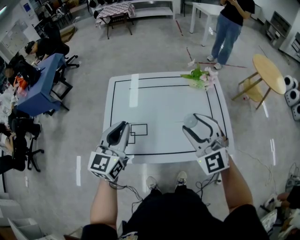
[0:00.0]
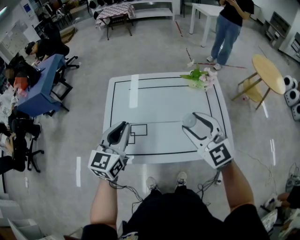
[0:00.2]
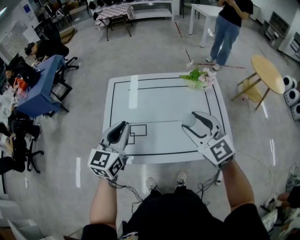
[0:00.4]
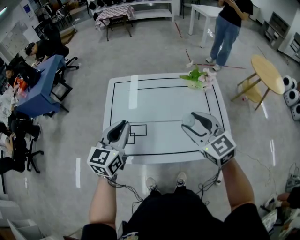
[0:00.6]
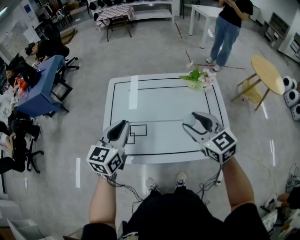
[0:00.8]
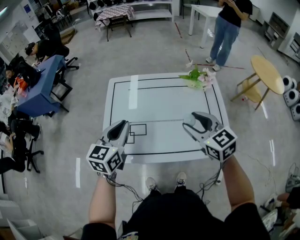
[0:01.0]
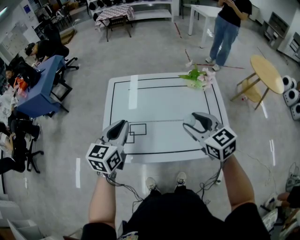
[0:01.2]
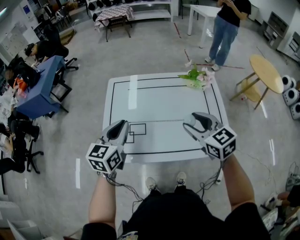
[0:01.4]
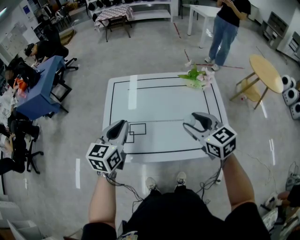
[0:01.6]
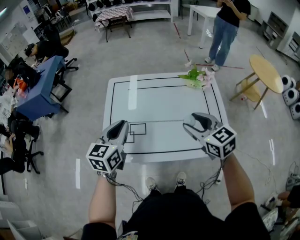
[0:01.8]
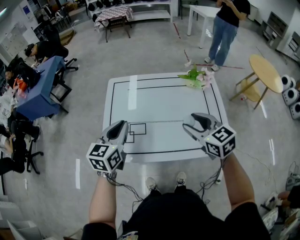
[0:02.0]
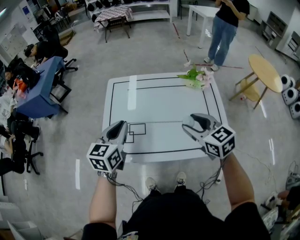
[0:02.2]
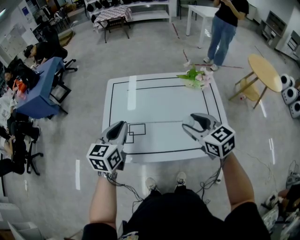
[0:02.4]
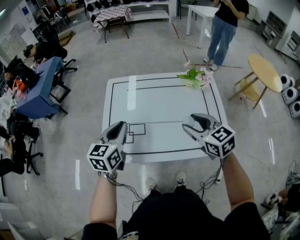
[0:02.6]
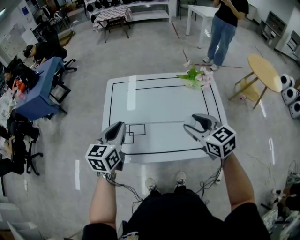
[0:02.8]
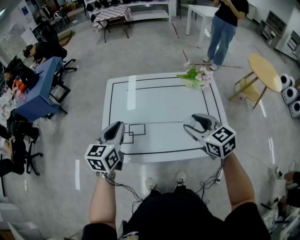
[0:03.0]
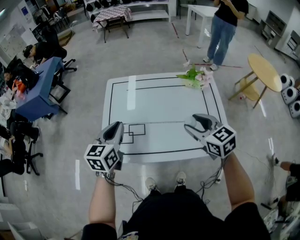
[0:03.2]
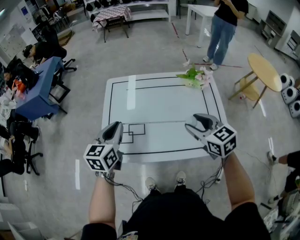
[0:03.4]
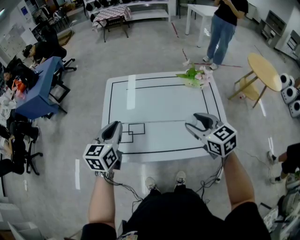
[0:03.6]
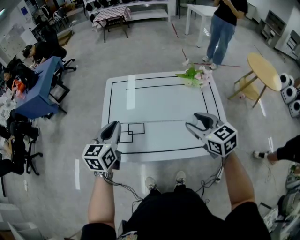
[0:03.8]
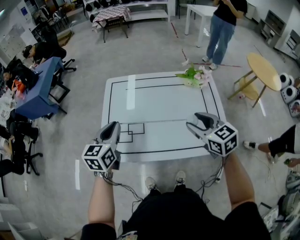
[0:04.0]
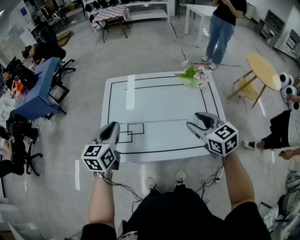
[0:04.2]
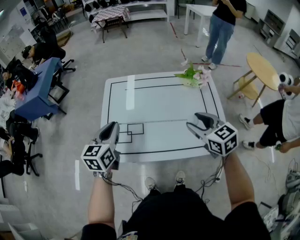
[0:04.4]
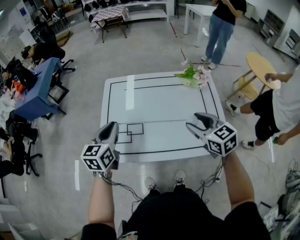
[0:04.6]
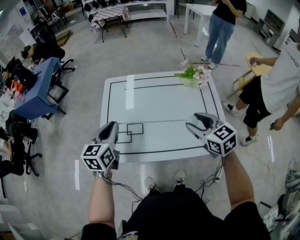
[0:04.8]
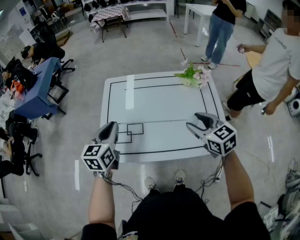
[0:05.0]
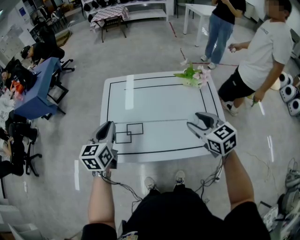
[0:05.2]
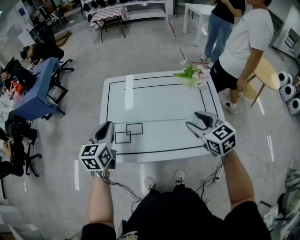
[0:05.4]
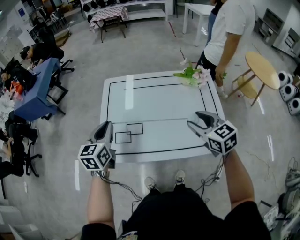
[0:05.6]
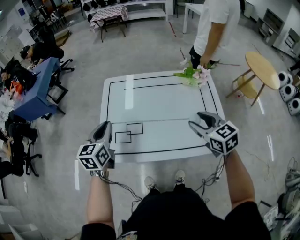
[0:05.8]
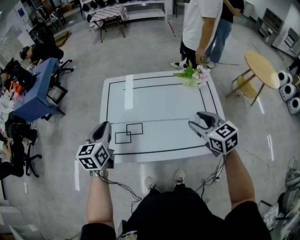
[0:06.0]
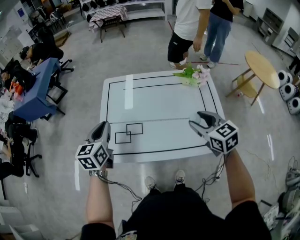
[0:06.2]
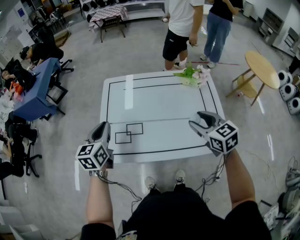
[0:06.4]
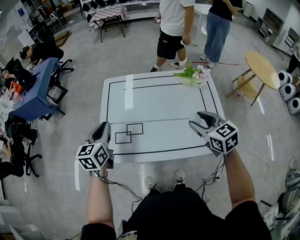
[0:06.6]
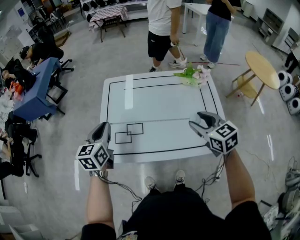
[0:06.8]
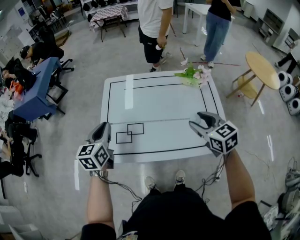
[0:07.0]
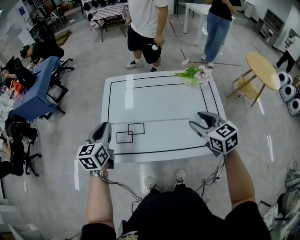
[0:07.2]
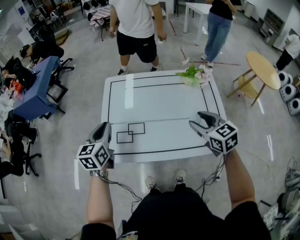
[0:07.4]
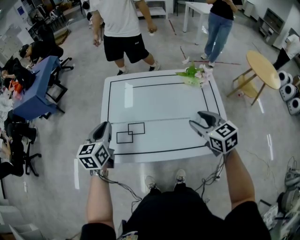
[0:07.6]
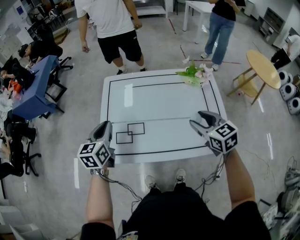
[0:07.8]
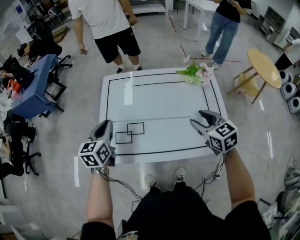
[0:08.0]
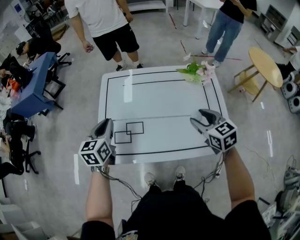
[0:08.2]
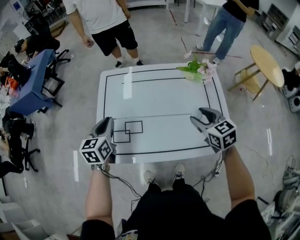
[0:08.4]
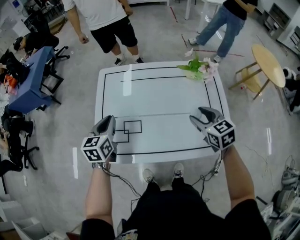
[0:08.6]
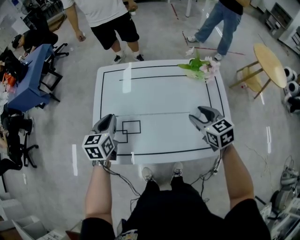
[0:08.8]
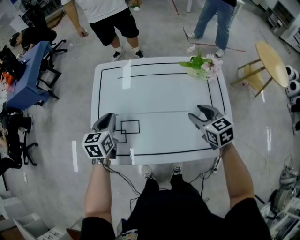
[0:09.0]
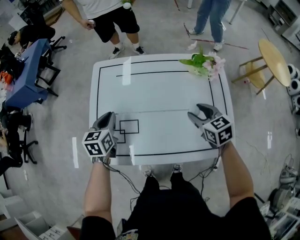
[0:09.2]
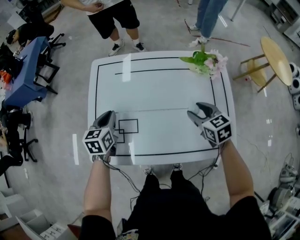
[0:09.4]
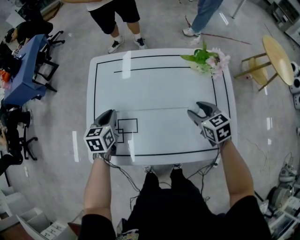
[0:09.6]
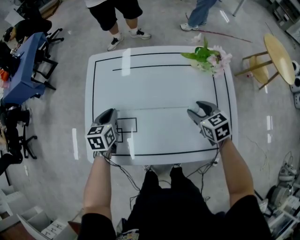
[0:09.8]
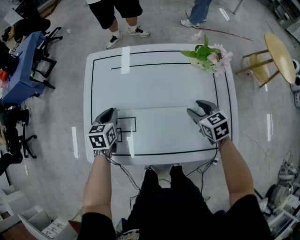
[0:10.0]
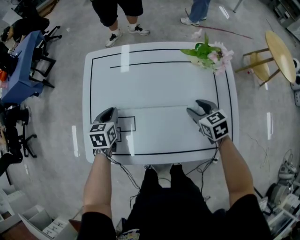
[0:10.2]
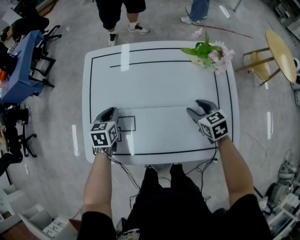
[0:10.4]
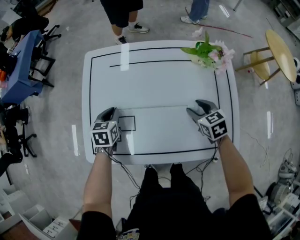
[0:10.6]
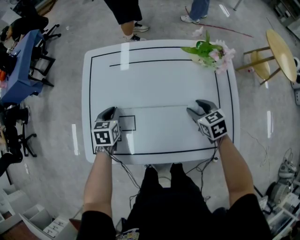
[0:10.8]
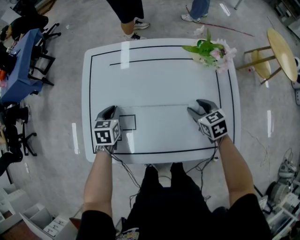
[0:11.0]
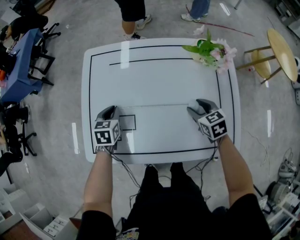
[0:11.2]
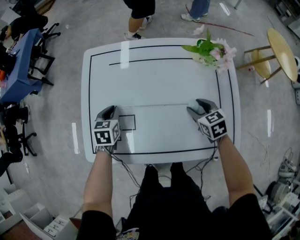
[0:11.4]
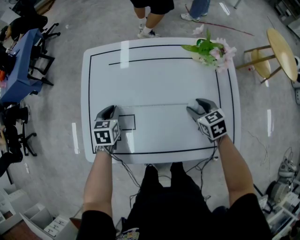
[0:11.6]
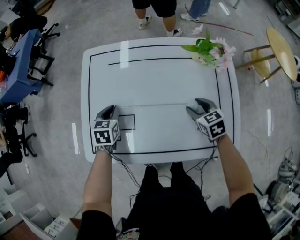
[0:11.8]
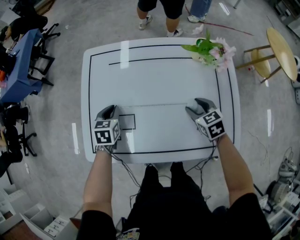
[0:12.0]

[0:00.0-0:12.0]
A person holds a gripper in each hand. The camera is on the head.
0:00.0 to 0:01.6: The right gripper rotates about 40 degrees.
0:01.6 to 0:04.4: There are only small adjustments of the grippers.
0:04.4 to 0:07.6: The grippers move only a little.
0:07.6 to 0:09.0: The left gripper heads downward, forward and to the right, covering roughly 15 cm. The right gripper heads downward and forward, covering about 15 cm.
0:09.0 to 0:10.4: Both grippers move downward, roughly 10 cm.
0:10.4 to 0:12.0: The grippers stay close to where they were, moving slightly.

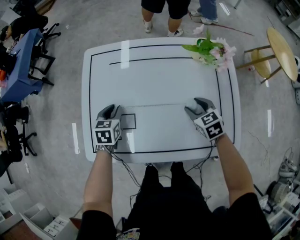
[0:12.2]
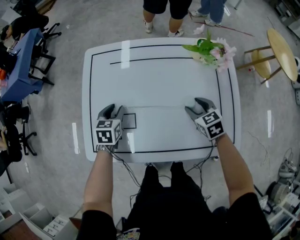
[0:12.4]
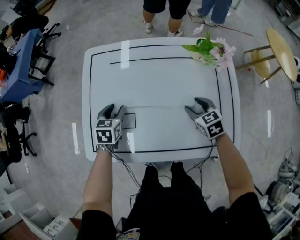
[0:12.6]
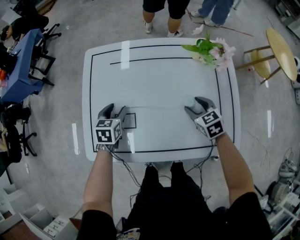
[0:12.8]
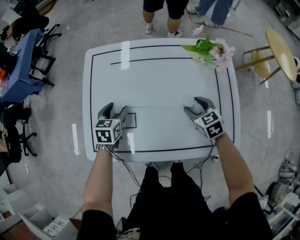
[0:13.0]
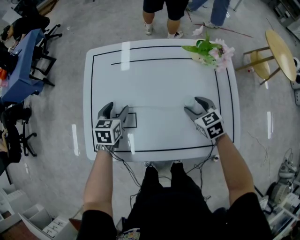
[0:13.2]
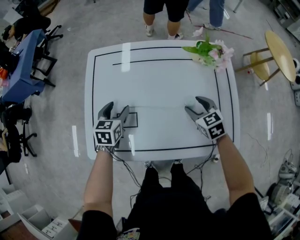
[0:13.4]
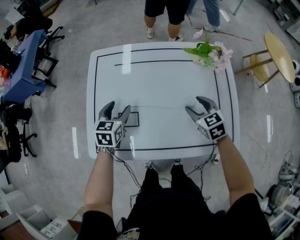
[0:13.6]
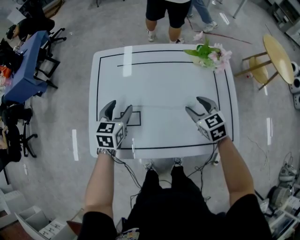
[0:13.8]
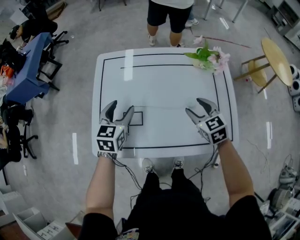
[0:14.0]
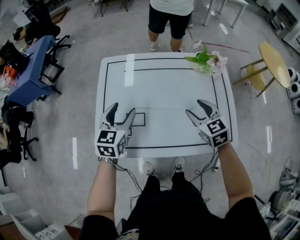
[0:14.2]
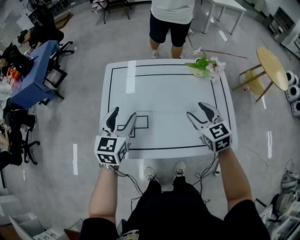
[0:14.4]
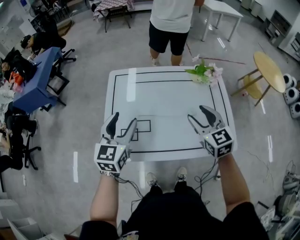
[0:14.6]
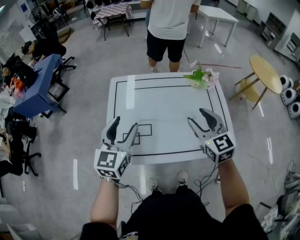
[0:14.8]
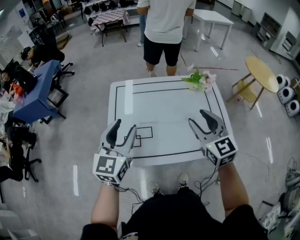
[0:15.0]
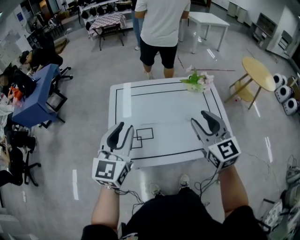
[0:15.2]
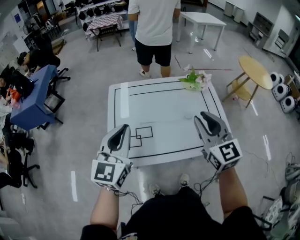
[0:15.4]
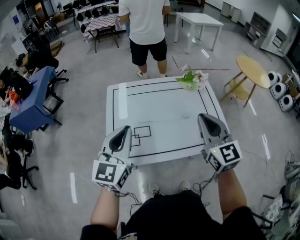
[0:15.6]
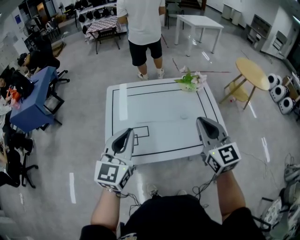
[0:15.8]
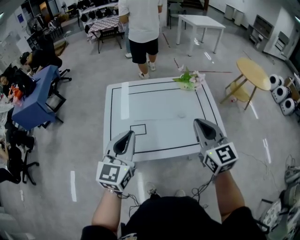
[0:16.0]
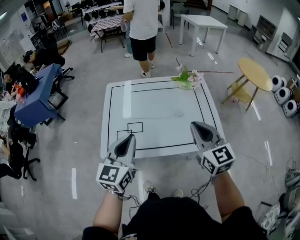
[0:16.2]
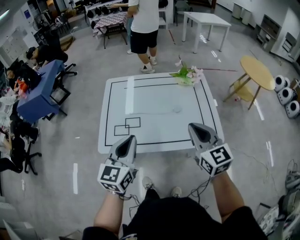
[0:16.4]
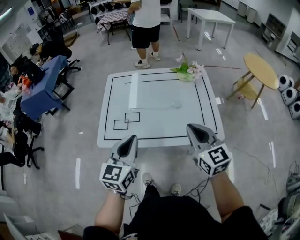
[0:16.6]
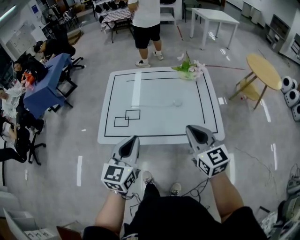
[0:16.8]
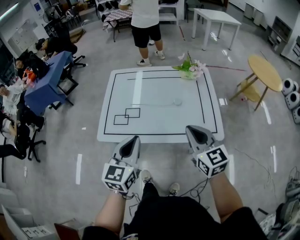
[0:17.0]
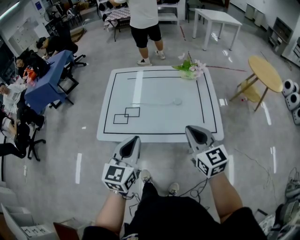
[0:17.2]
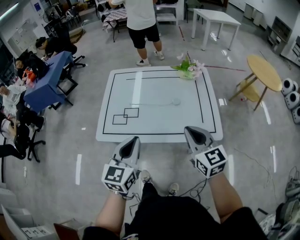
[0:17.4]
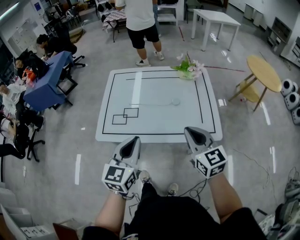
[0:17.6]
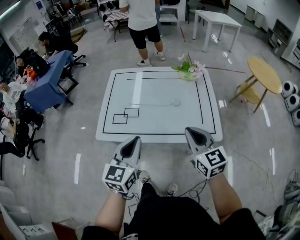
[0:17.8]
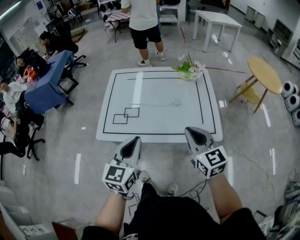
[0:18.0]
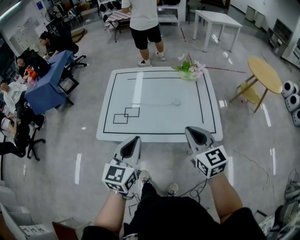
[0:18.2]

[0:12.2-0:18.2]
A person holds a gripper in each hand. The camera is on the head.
0:12.2 to 0:13.8: Both grippers travel together upward, some 10 cm. The left gripper opens up.
0:13.8 to 0:15.2: The two grippers go roughly 30 cm upward and backward. The left gripper angles its fingers upward, by approximately 30 degrees, and closes up. Meanwhile the right gripper angles its fingers upward, by roughly 30 degrees.
0:15.2 to 0:16.6: The left gripper is displaced to the right, backward and downward by about 20 cm, and closes up. The right gripper travels backward and to the right by approximately 15 cm, and closes.
0:16.6 to 0:18.2: The left gripper moves approximately 5 cm.

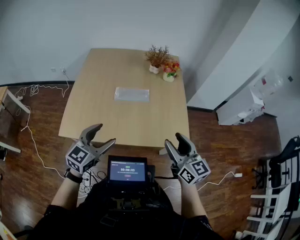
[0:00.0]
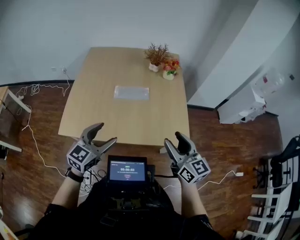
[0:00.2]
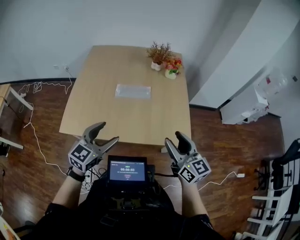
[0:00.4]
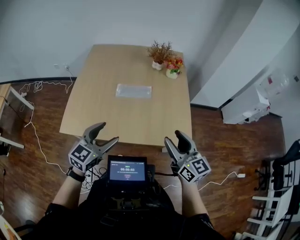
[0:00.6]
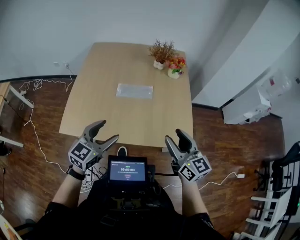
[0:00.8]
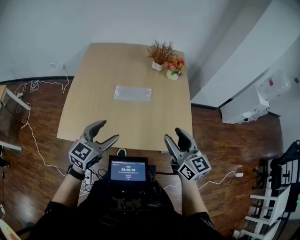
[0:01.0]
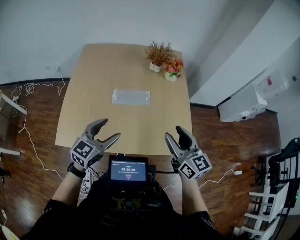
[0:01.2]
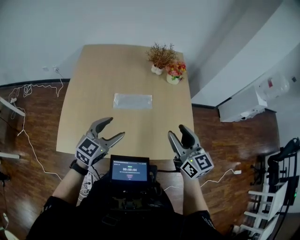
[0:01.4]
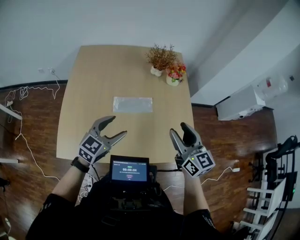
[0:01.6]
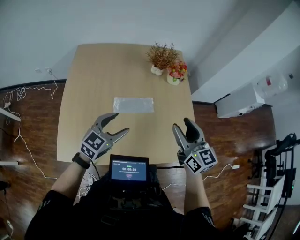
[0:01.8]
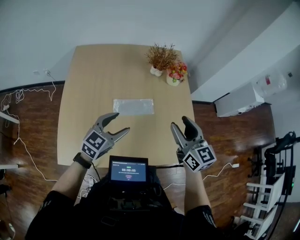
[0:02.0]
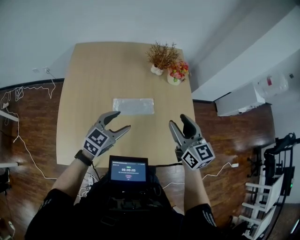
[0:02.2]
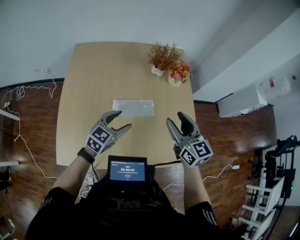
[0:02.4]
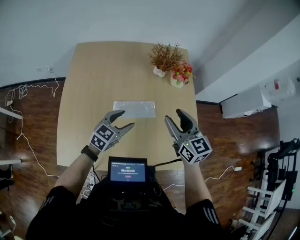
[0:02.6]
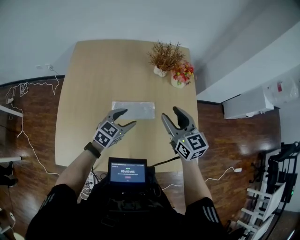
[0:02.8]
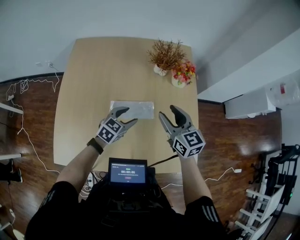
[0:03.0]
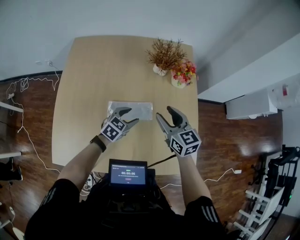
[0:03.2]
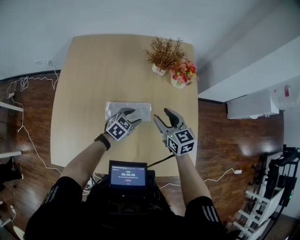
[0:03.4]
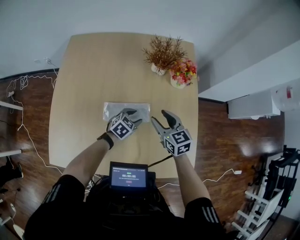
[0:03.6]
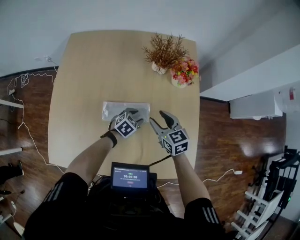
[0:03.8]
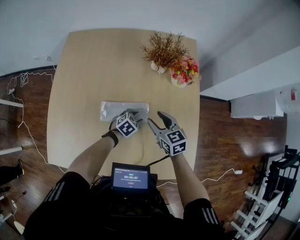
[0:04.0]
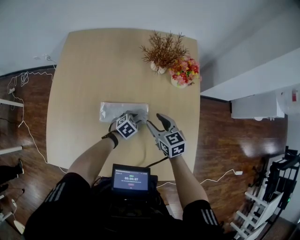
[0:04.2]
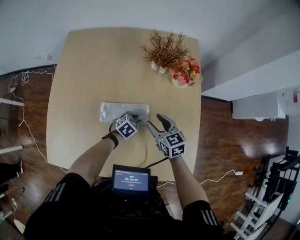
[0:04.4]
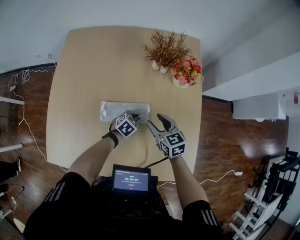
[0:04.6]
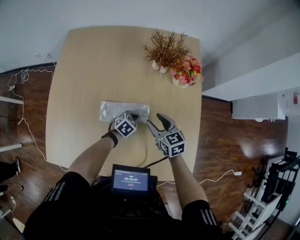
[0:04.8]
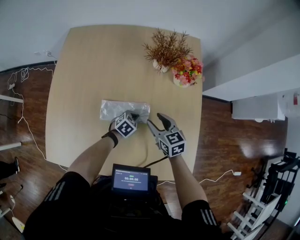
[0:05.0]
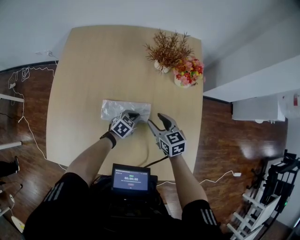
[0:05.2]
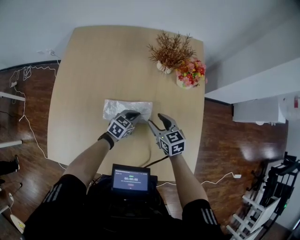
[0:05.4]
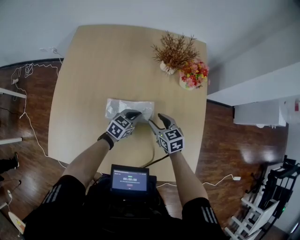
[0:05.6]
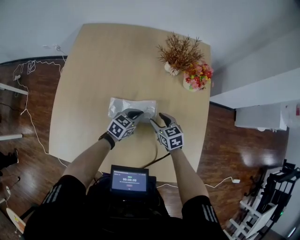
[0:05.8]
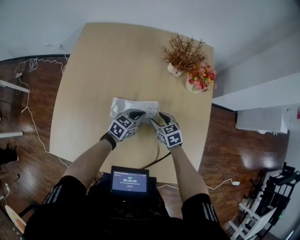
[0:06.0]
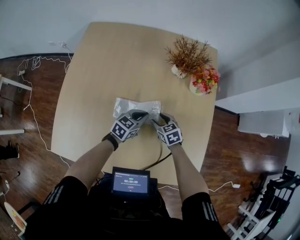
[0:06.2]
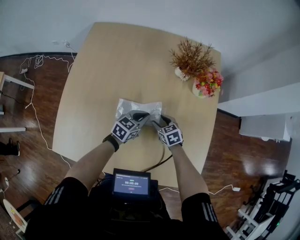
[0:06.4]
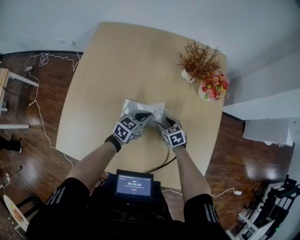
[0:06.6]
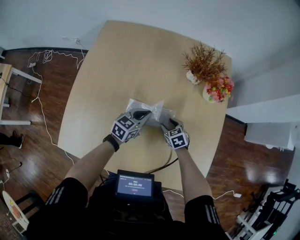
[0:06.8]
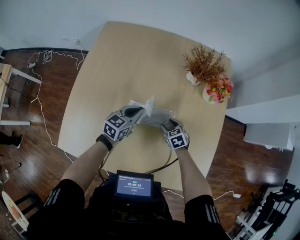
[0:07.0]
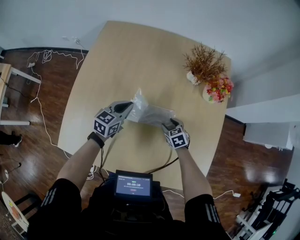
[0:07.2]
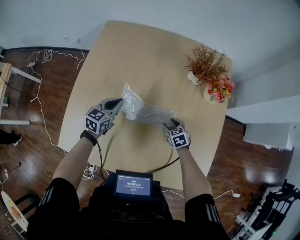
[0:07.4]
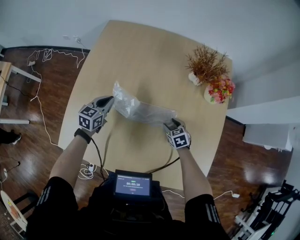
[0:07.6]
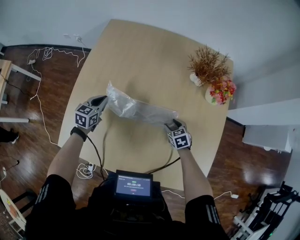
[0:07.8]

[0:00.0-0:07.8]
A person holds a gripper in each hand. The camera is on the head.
0:00.0 to 0:01.6: Both grippers move forward, some 20 cm.
0:01.6 to 0:03.2: Both grippers travel together forward and downward, some 25 cm. The left gripper turns by about 20 degrees.
0:03.2 to 0:04.6: Both grippers move downward, roughly 15 cm. The left gripper closes its fingers.
0:04.6 to 0:06.2: The right gripper is displaced downward and to the left by about 10 cm, and rotates approximately 20 degrees; the left gripper shifts approximately 10 cm upward, and rotates approximately 30 degrees.
0:06.2 to 0:07.8: The left gripper goes some 30 cm to the left, and changes its angle by some 30 degrees.
